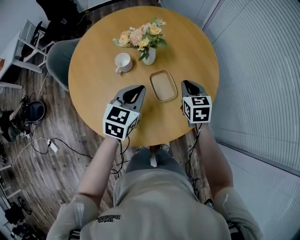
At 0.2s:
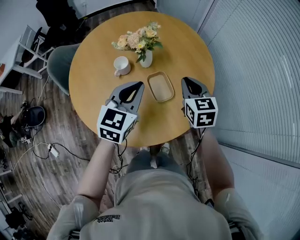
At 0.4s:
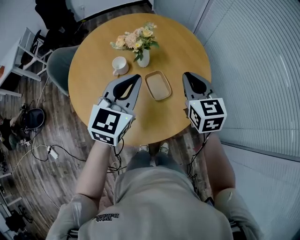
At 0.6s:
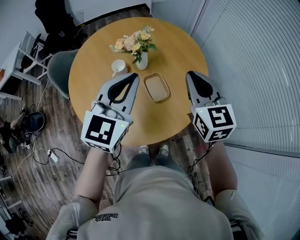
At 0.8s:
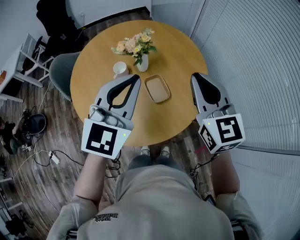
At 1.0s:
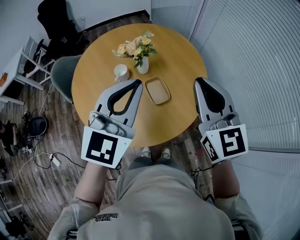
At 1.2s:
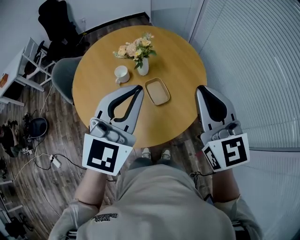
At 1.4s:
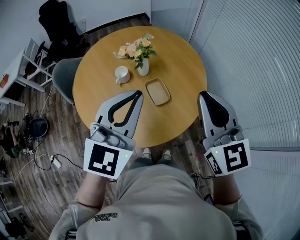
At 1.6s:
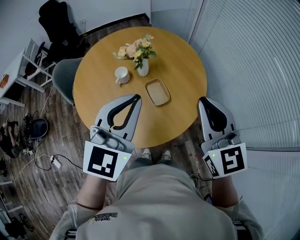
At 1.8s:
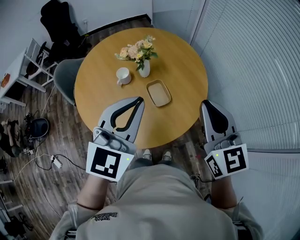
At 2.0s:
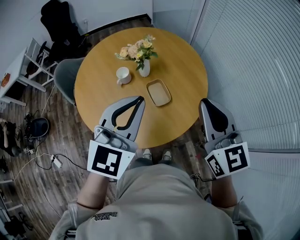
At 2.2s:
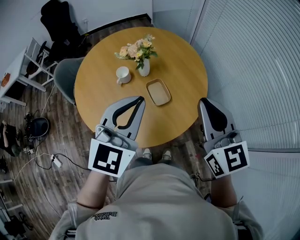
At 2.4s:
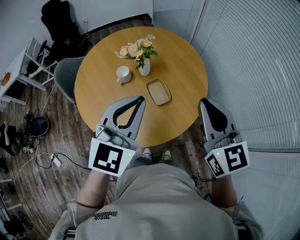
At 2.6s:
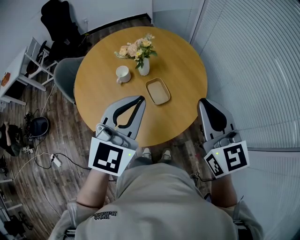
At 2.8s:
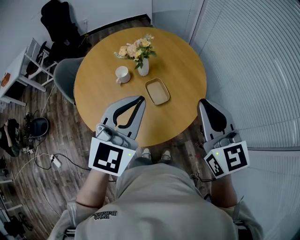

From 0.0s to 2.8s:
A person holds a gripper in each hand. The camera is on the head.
From 0.0s to 1.4s: Both grippers move upward and backward, roughly 30 cm. The left gripper rotates about 30 degrees, while the right gripper angles its fingers upward, by some 30 degrees.
From 1.4s to 2.8s: There are only small adjustments of the grippers.

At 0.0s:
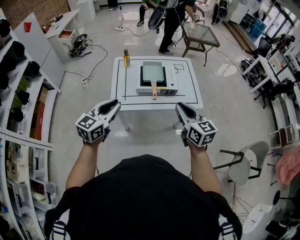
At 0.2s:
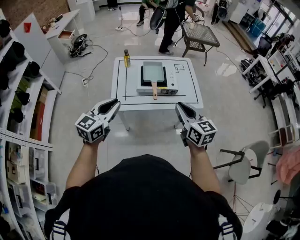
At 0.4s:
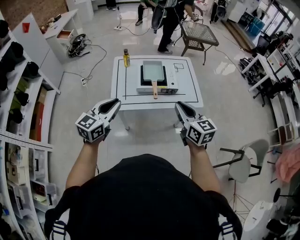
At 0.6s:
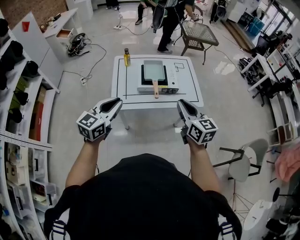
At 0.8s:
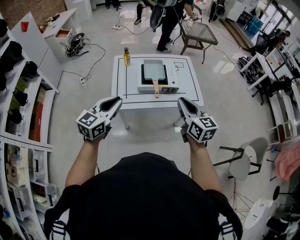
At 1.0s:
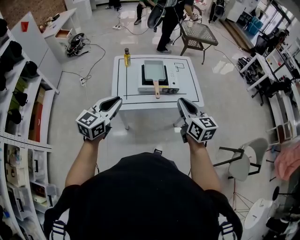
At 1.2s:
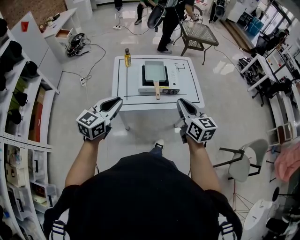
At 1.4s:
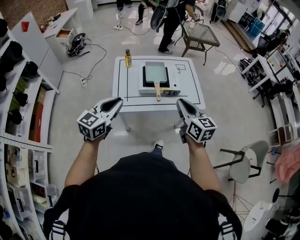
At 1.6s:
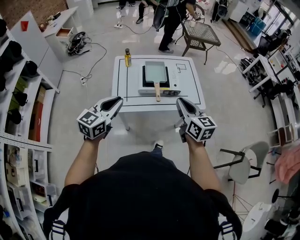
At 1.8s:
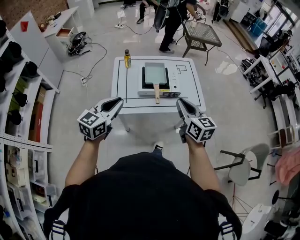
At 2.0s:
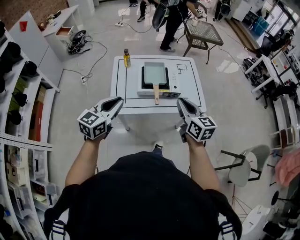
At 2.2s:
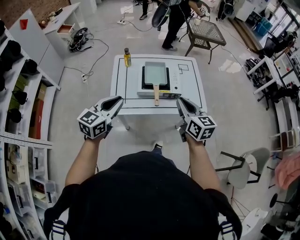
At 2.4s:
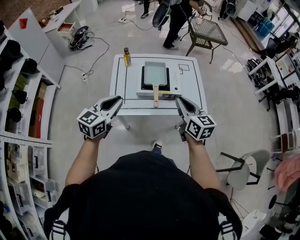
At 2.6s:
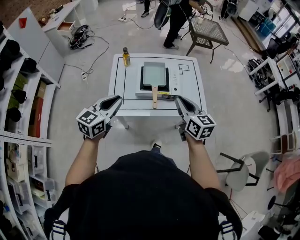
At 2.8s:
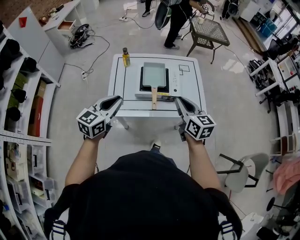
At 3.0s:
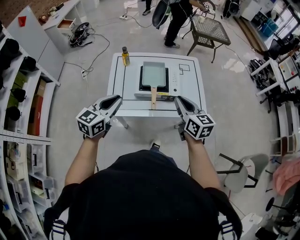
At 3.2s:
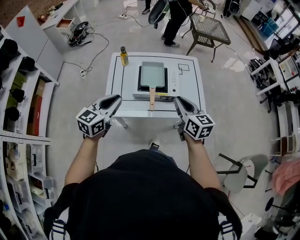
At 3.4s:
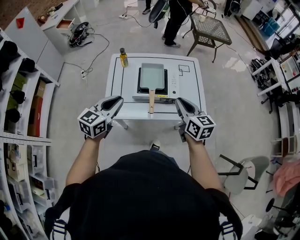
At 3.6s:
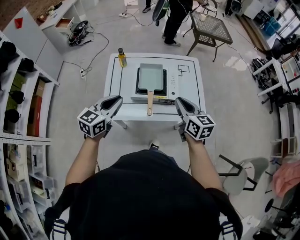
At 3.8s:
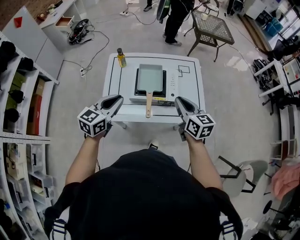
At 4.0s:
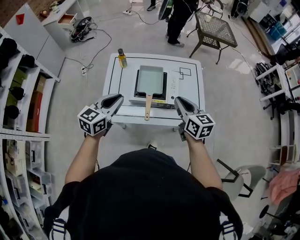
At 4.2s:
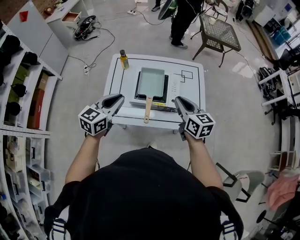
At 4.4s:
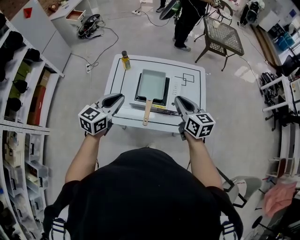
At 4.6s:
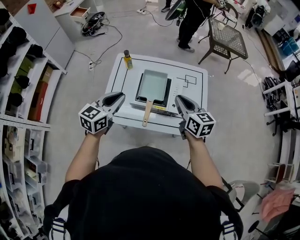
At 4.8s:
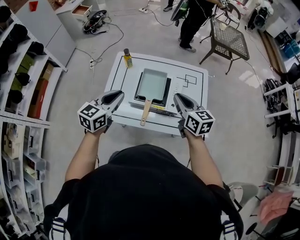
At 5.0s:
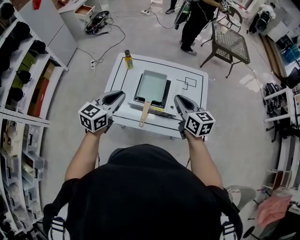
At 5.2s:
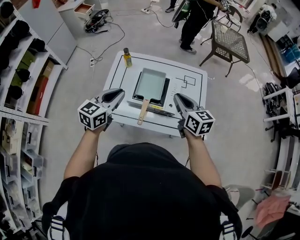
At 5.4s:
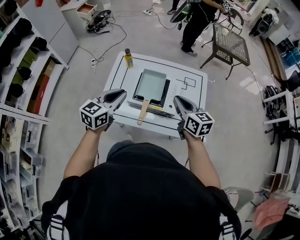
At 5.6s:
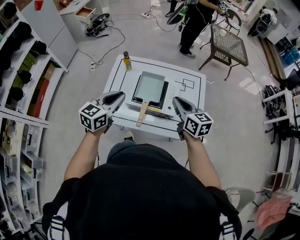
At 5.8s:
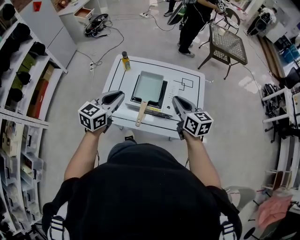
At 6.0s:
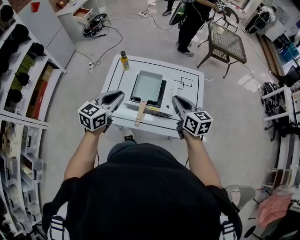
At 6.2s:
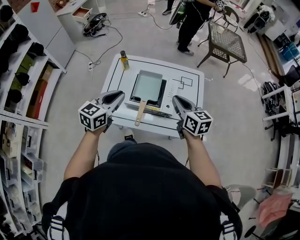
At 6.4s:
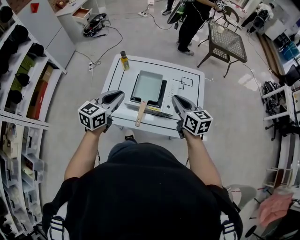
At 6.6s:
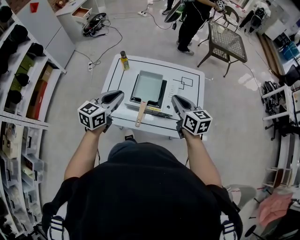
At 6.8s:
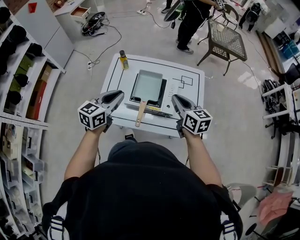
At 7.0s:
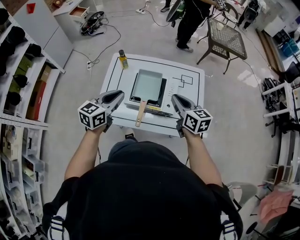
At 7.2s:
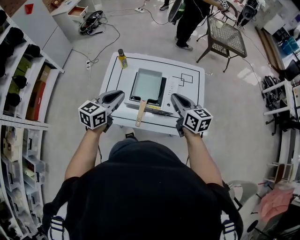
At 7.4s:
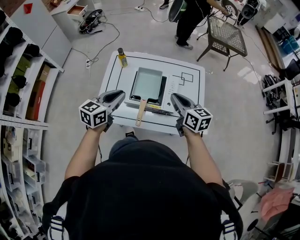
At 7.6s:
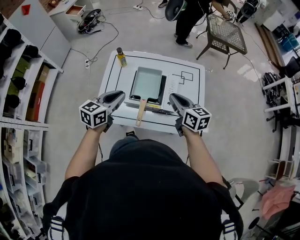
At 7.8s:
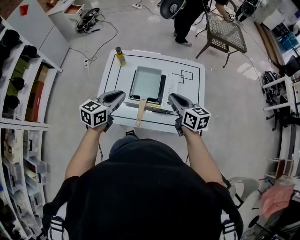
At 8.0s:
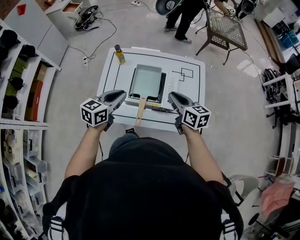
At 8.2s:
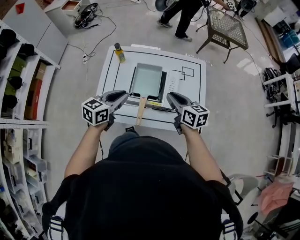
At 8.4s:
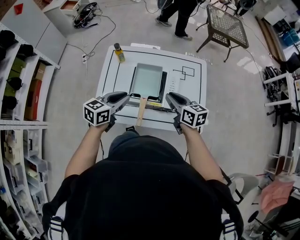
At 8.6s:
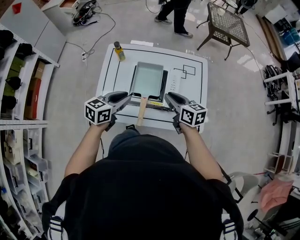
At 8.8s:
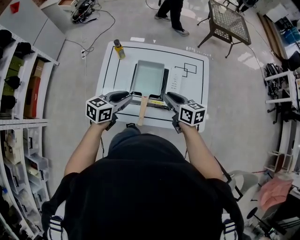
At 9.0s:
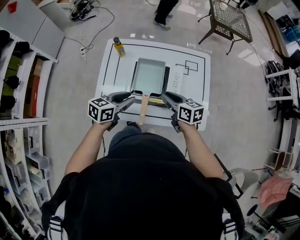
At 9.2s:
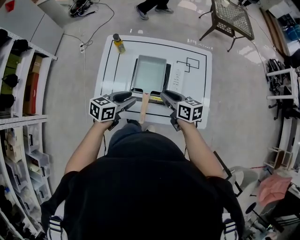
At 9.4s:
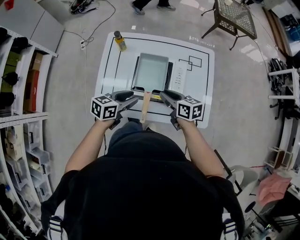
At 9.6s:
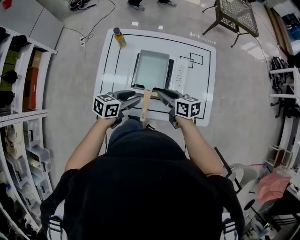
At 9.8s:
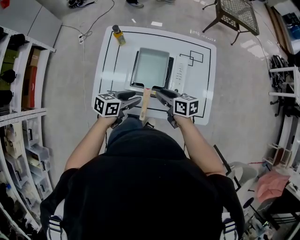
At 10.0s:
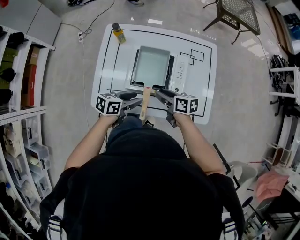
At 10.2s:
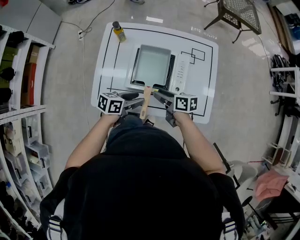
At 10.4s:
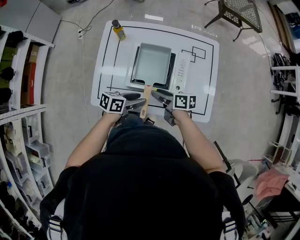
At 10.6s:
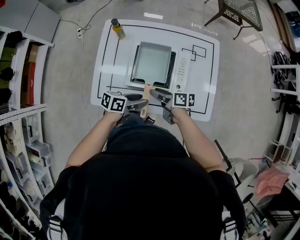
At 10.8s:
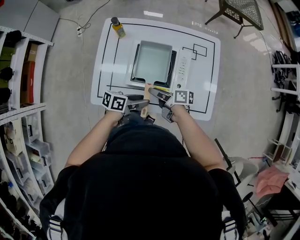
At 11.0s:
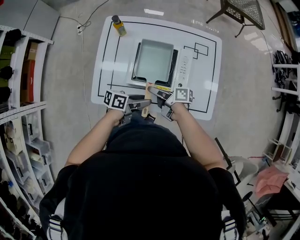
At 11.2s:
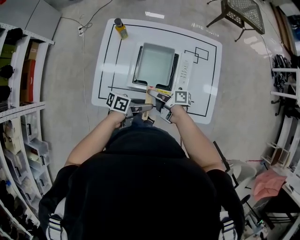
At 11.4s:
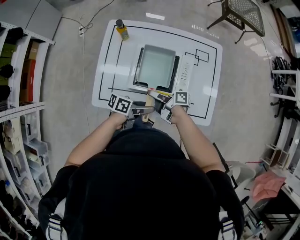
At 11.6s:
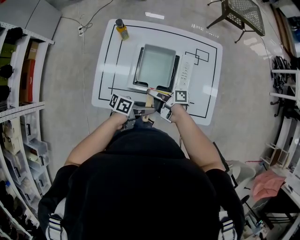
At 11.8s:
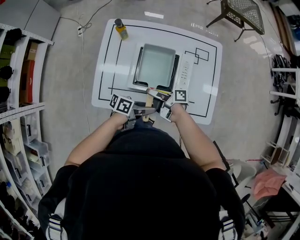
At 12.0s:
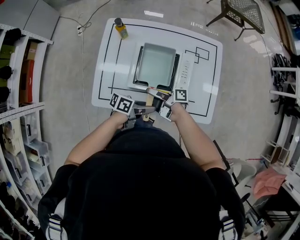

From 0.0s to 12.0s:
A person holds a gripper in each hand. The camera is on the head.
From 0.0s to 1.6s: The right gripper moves some 5 cm.
From 1.6s to 3.0s: The grippers both shift forward by approximately 10 cm.
From 3.0s to 4.4s: Both grippers move forward, about 10 cm.
From 4.4s to 7.6s: The grippers move only a little.
From 7.6s to 9.0s: Both grippers move downward, approximately 10 cm.
From 9.0s to 10.4s: Both grippers move downward, roughly 10 cm. The right gripper changes its angle by about 30 degrees, and opens its fingers, while the left gripper rotates approximately 20 degrees, and opens up.
From 10.4s to 12.0s: The left gripper moves about 5 cm, and turns by roughly 20 degrees. Meanwhile the right gripper ends up approximately 5 cm from where it was, and changes its angle by roughly 30 degrees.

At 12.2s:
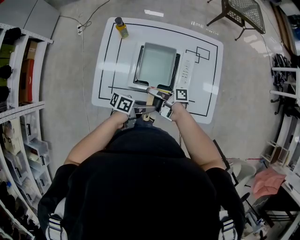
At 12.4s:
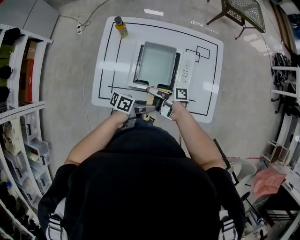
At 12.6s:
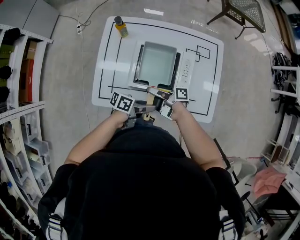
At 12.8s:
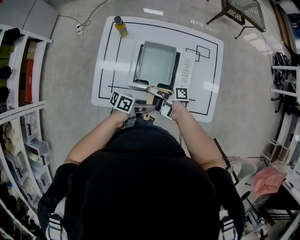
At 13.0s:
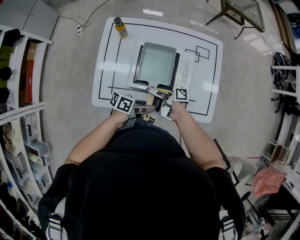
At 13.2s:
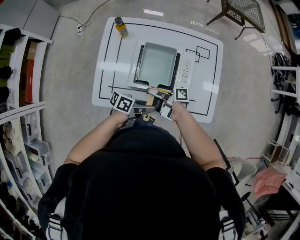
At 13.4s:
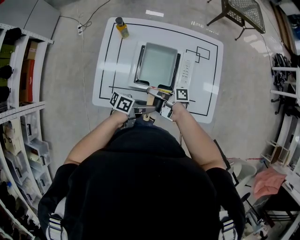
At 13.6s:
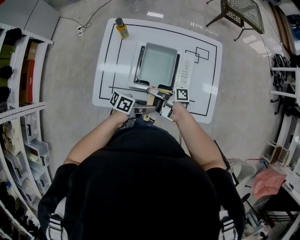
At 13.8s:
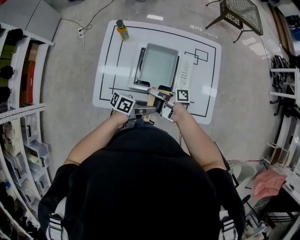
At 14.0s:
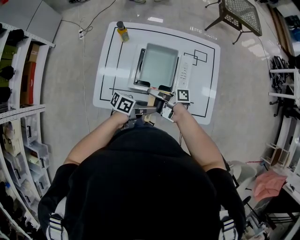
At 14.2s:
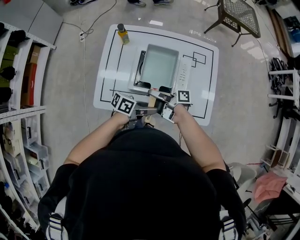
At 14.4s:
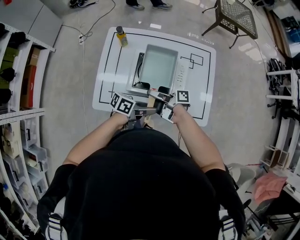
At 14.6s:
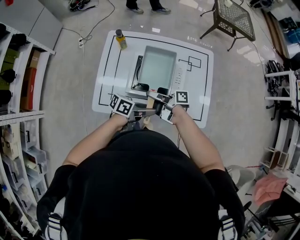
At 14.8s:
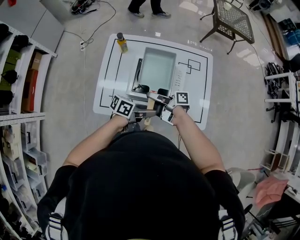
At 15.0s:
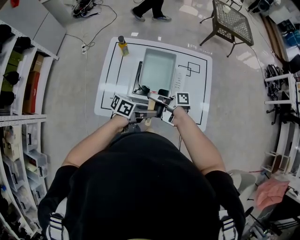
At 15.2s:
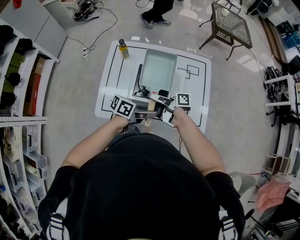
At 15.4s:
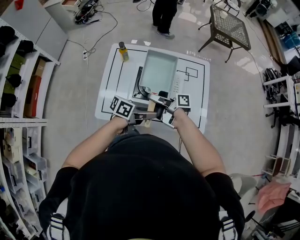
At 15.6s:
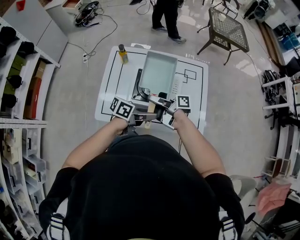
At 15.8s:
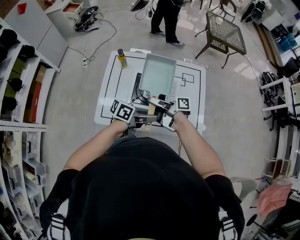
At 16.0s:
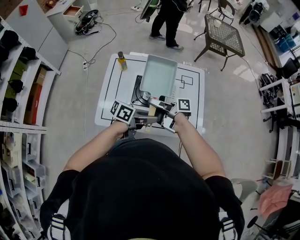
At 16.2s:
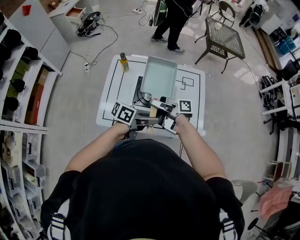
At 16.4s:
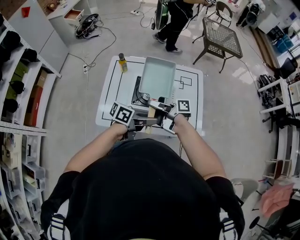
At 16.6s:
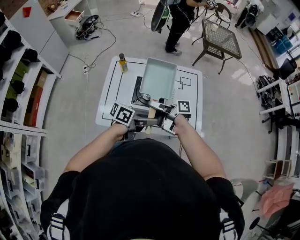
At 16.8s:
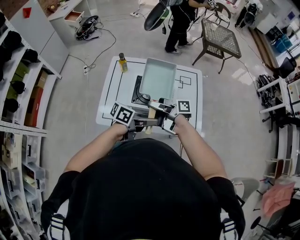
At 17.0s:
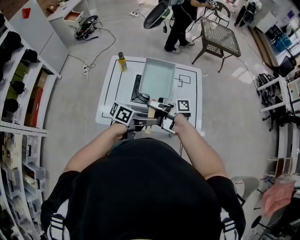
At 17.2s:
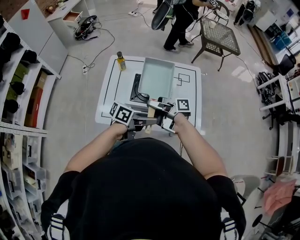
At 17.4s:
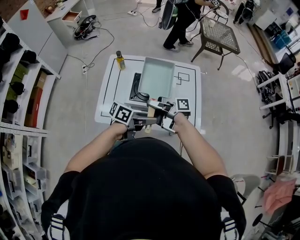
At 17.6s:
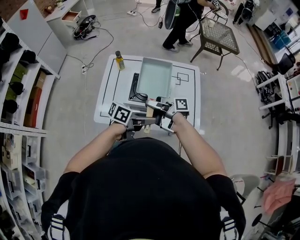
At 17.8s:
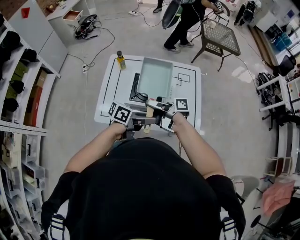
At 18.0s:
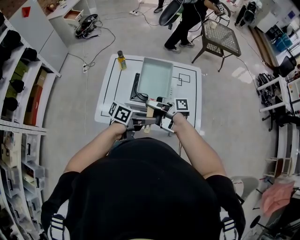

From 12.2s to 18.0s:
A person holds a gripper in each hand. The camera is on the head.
From 12.2s to 13.6s: Both grippers stay put.
From 13.6s to 15.0s: Both grippers move upward, some 10 cm.
From 15.0s to 16.6s: Both grippers travel together upward, approximately 10 cm.
From 16.6s to 18.0s: There are only small adjustments of the grippers.

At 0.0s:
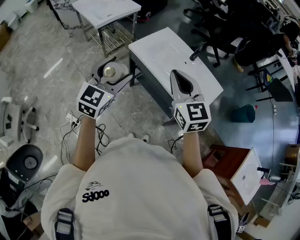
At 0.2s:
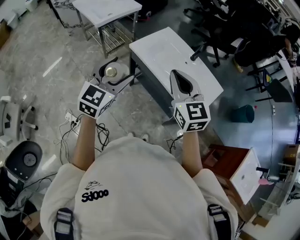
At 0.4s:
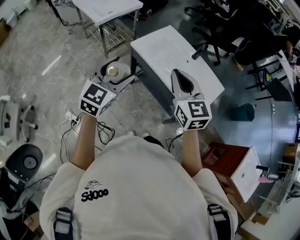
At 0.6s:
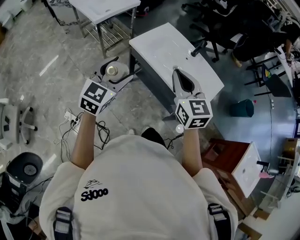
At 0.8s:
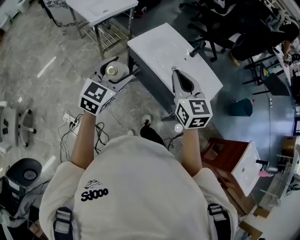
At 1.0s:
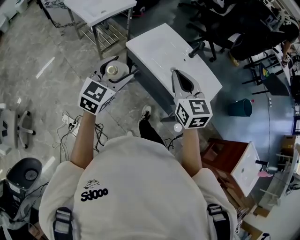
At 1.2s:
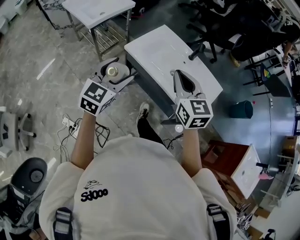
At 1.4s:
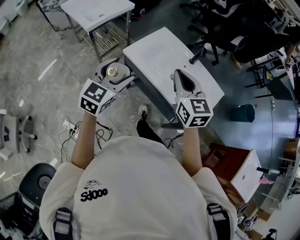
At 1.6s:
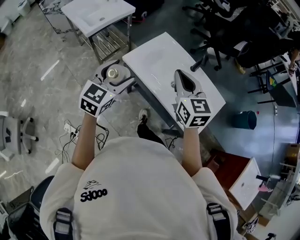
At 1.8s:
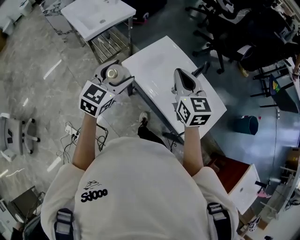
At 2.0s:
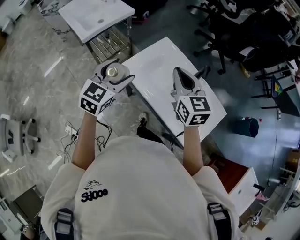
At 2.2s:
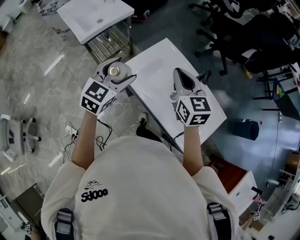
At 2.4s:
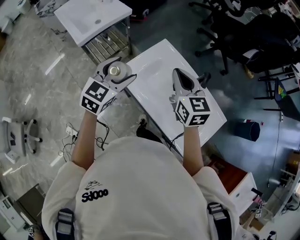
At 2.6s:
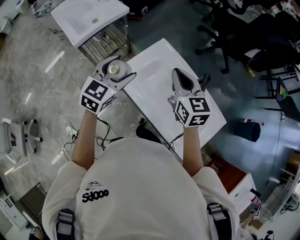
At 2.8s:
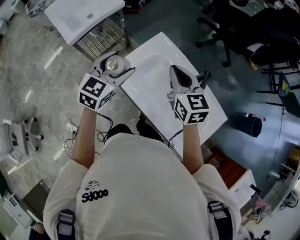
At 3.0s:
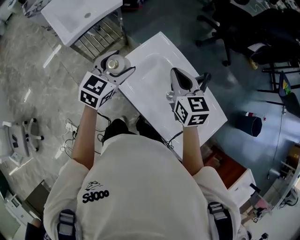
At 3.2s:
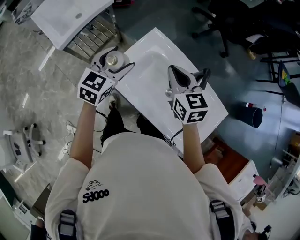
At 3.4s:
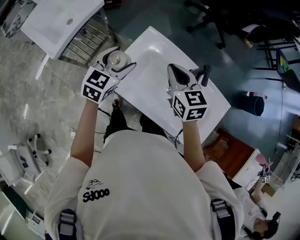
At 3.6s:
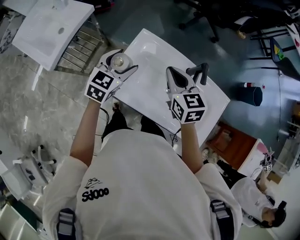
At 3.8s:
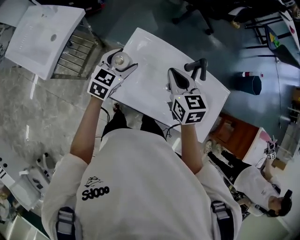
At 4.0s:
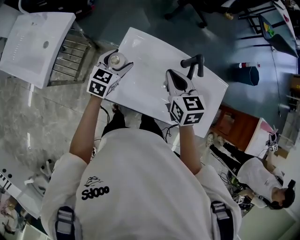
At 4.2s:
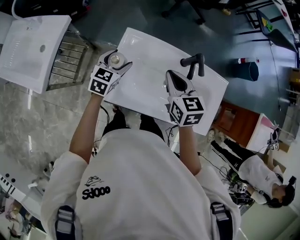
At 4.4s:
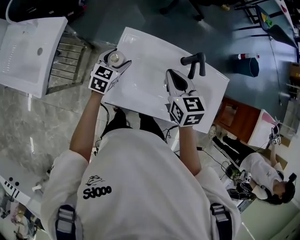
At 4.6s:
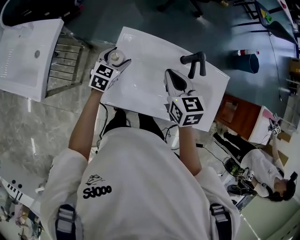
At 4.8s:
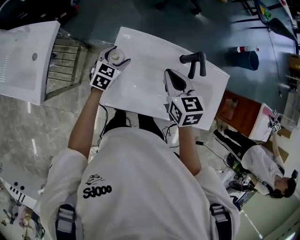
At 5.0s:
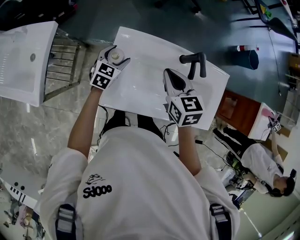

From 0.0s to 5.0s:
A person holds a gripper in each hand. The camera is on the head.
From 0.0s to 1.6s: The grippers both shift forward by some 15 cm.
From 1.6s to 3.4s: The left gripper heads forward, covering about 25 cm. The right gripper goes some 20 cm forward and downward.
From 3.4s to 5.0s: The left gripper is displaced downward and forward by roughly 20 cm, and swivels about 20 degrees. Meanwhile the right gripper shifts by some 5 cm, and rotates roughly 30 degrees.
